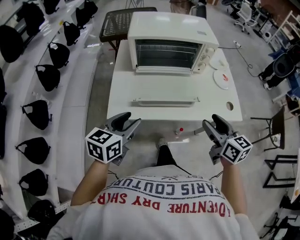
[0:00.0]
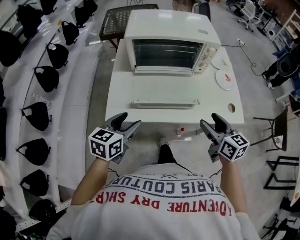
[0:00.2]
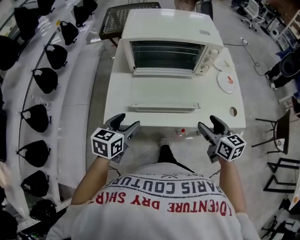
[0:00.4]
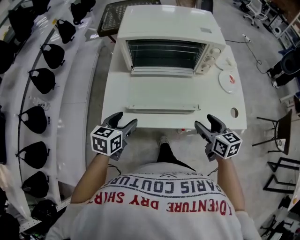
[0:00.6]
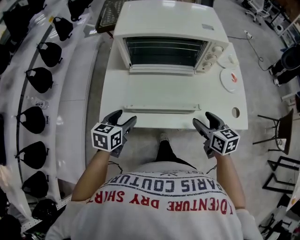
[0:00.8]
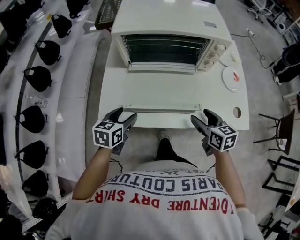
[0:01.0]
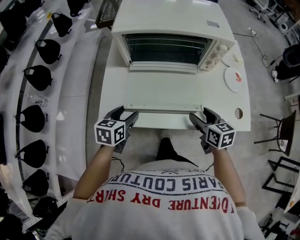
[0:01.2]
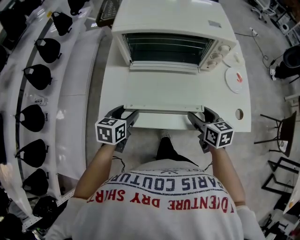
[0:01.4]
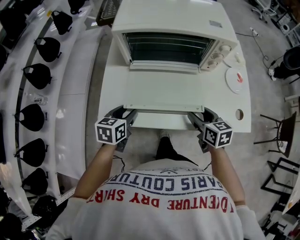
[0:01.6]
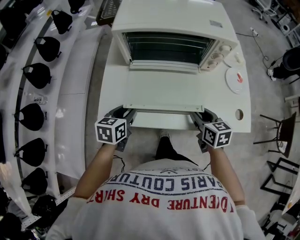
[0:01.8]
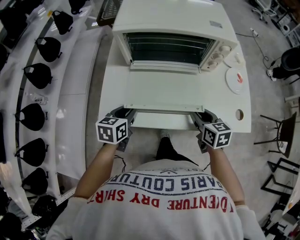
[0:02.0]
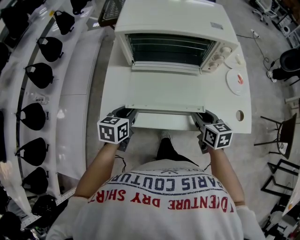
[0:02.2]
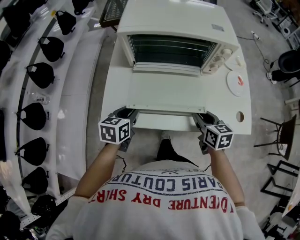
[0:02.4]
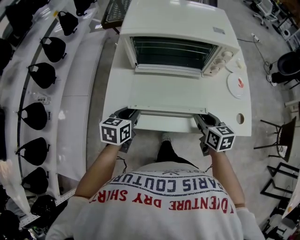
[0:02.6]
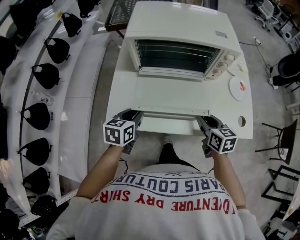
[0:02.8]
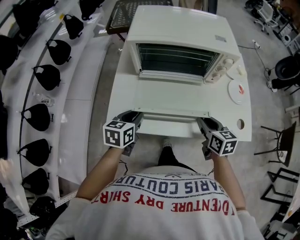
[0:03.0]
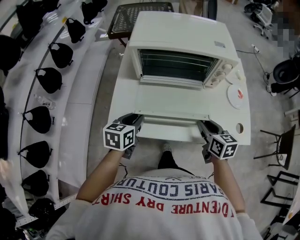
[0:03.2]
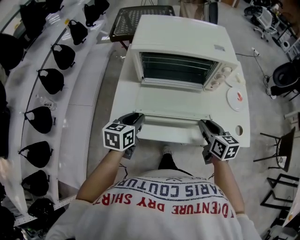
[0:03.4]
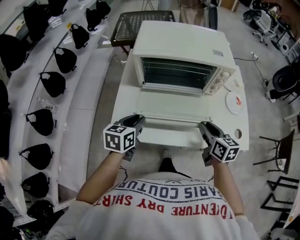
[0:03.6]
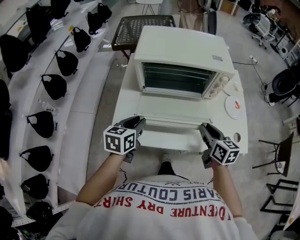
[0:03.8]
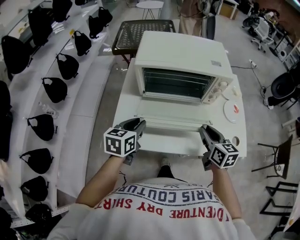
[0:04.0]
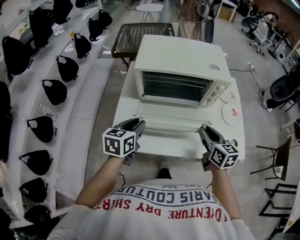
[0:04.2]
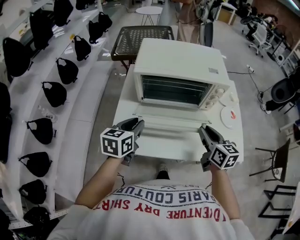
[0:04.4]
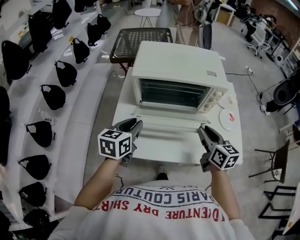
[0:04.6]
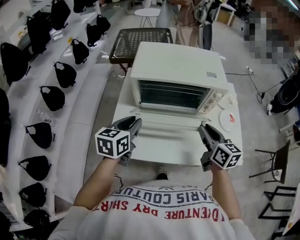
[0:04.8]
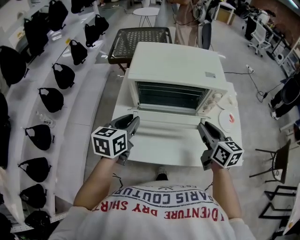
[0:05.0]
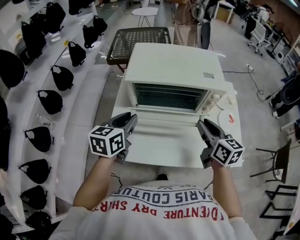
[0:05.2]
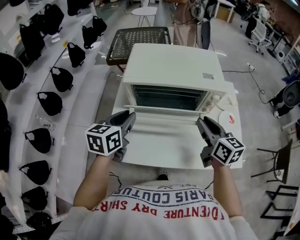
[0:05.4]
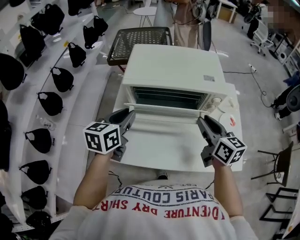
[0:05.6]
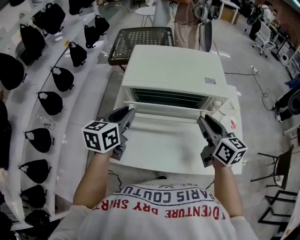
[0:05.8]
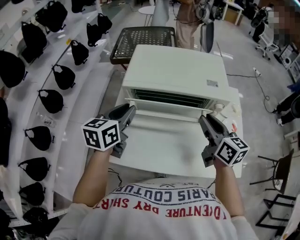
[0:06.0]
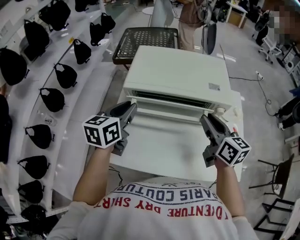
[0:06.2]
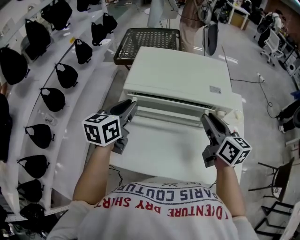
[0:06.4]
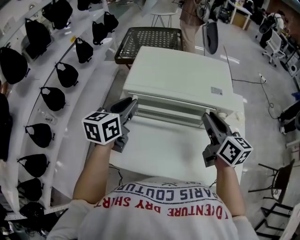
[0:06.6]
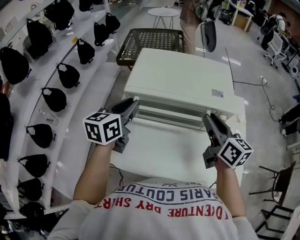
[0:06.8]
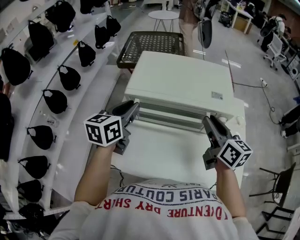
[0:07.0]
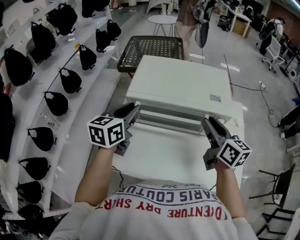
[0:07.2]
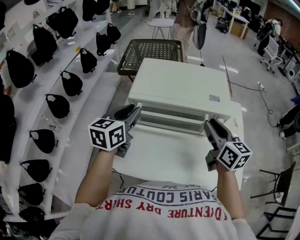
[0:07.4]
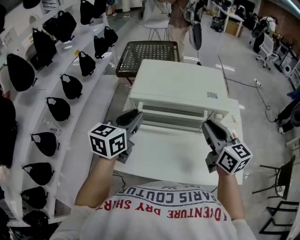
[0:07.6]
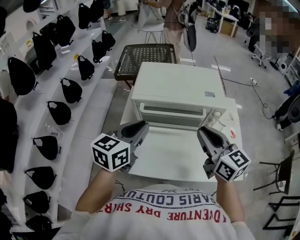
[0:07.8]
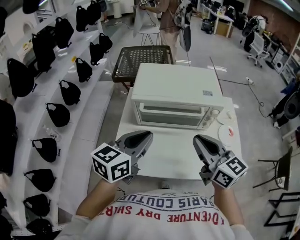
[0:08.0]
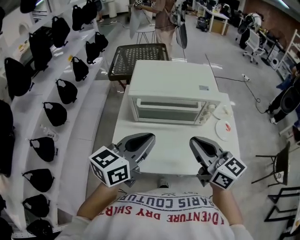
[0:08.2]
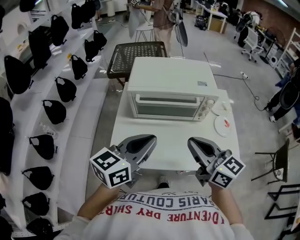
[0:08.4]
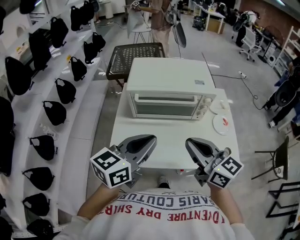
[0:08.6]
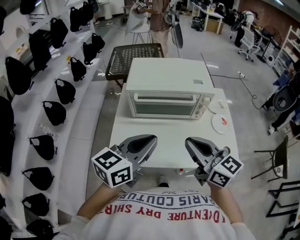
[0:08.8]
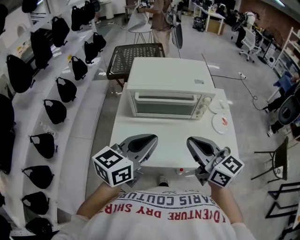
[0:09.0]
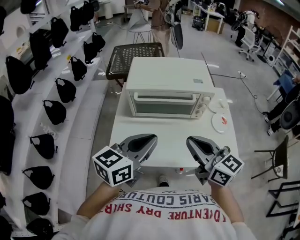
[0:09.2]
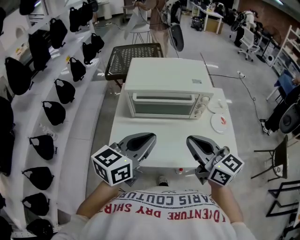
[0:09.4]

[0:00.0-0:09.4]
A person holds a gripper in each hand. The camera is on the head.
0.0 to 1.6 s: Both grippers travel together downward and forward, about 20 cm. The left gripper swivels some 20 degrees.
1.6 to 3.2 s: The right gripper closes its fingers. Meanwhile the left gripper closes its fingers.
3.2 to 4.8 s: Both grippers travel together upward and forward, approximately 10 cm.
4.8 to 6.2 s: The two grippers go roughly 10 cm forward and upward.
6.2 to 7.8 s: The right gripper goes roughly 10 cm backward, upward and to the left. The left gripper heads backward and upward, covering about 10 cm.
7.8 to 9.4 s: The right gripper travels backward by about 10 cm, while the left gripper shifts approximately 10 cm backward and to the right.

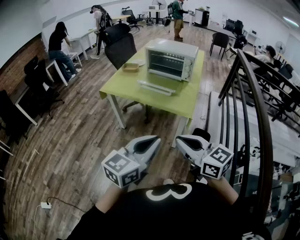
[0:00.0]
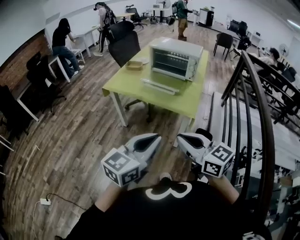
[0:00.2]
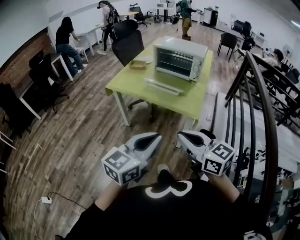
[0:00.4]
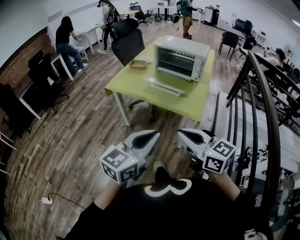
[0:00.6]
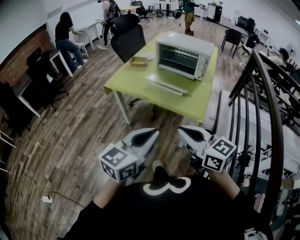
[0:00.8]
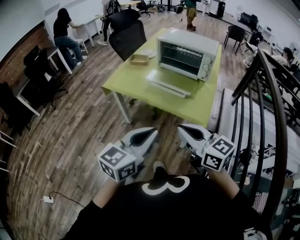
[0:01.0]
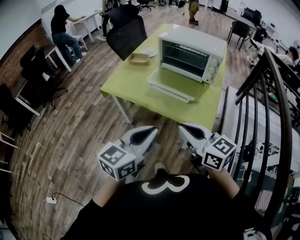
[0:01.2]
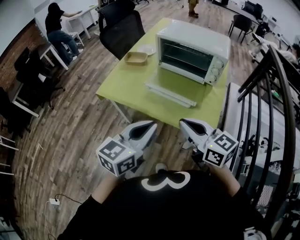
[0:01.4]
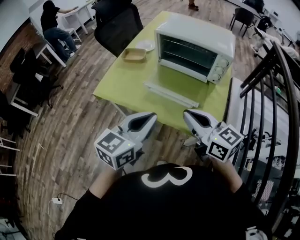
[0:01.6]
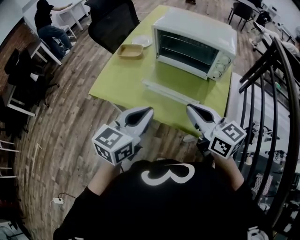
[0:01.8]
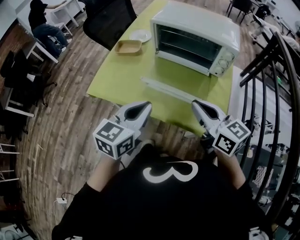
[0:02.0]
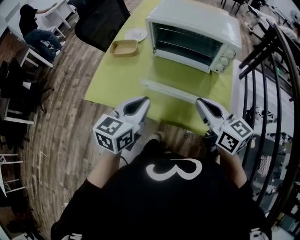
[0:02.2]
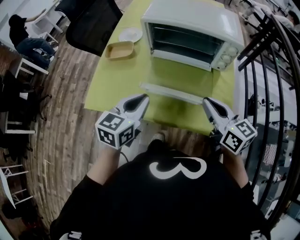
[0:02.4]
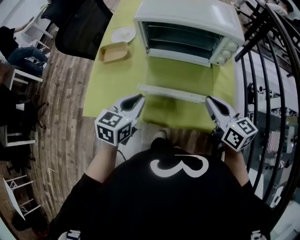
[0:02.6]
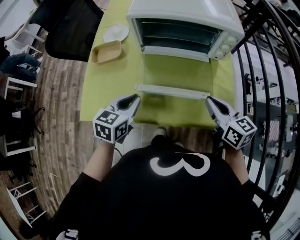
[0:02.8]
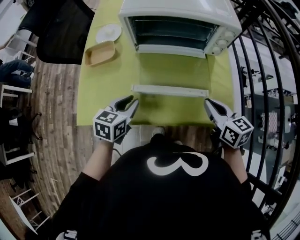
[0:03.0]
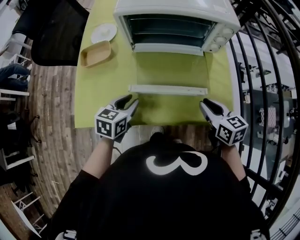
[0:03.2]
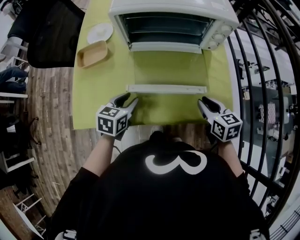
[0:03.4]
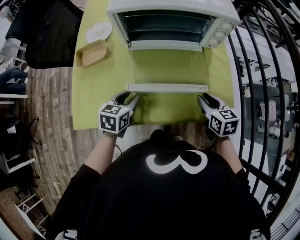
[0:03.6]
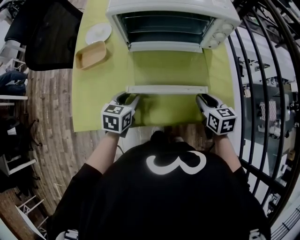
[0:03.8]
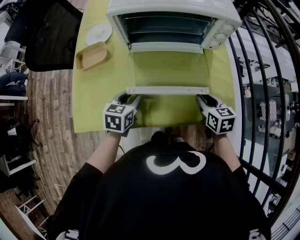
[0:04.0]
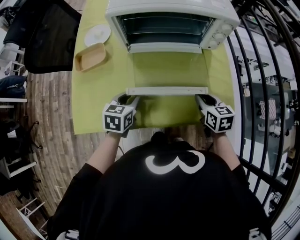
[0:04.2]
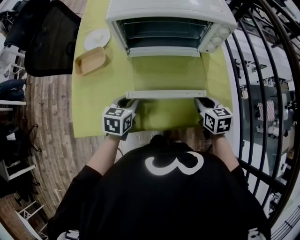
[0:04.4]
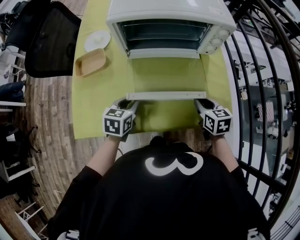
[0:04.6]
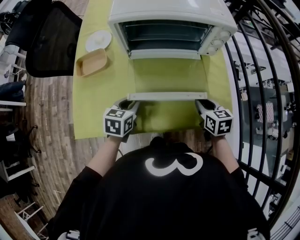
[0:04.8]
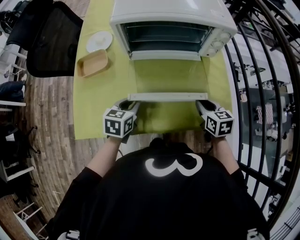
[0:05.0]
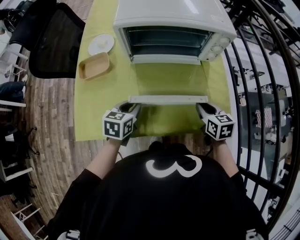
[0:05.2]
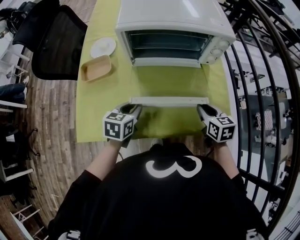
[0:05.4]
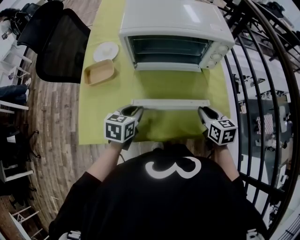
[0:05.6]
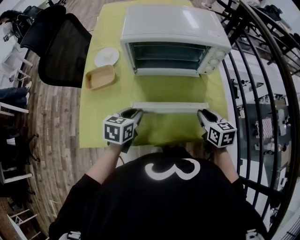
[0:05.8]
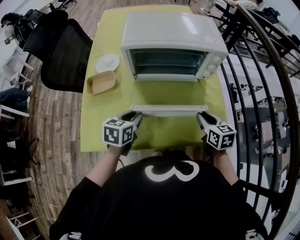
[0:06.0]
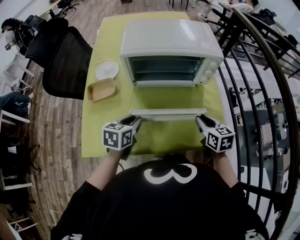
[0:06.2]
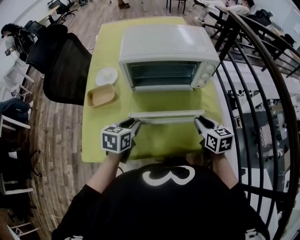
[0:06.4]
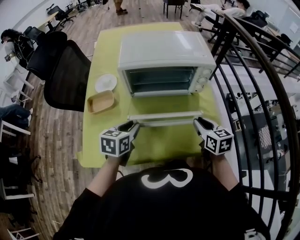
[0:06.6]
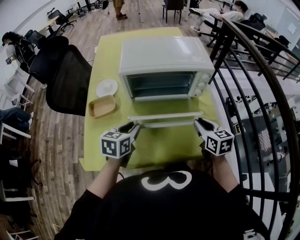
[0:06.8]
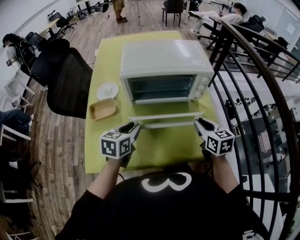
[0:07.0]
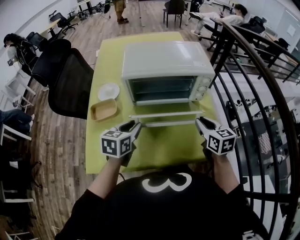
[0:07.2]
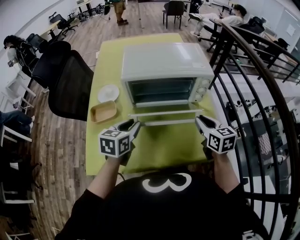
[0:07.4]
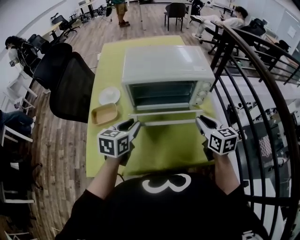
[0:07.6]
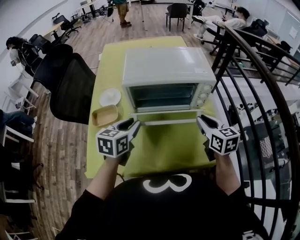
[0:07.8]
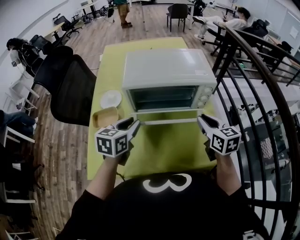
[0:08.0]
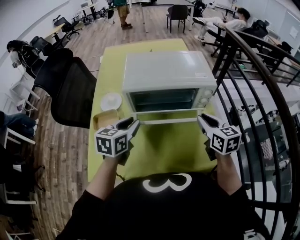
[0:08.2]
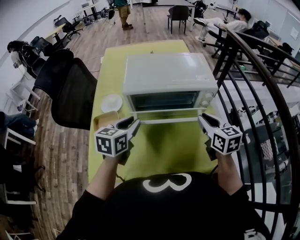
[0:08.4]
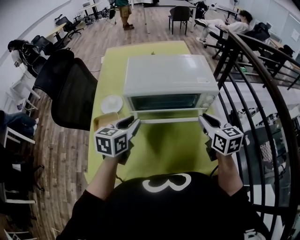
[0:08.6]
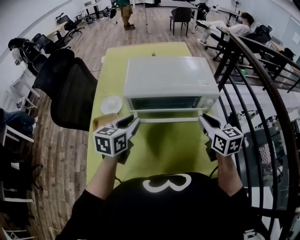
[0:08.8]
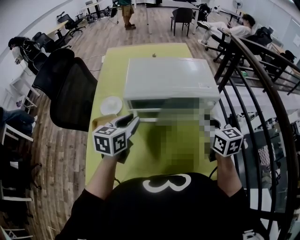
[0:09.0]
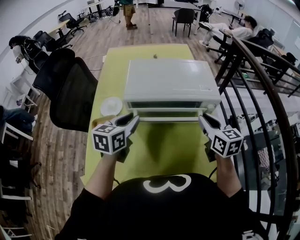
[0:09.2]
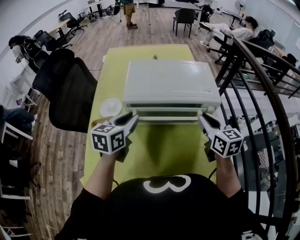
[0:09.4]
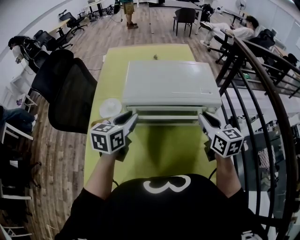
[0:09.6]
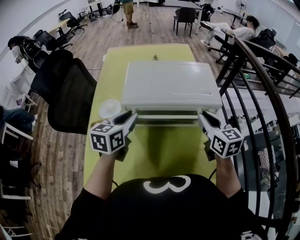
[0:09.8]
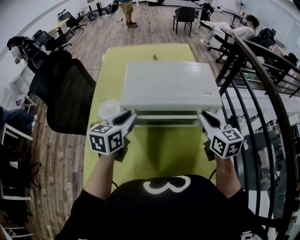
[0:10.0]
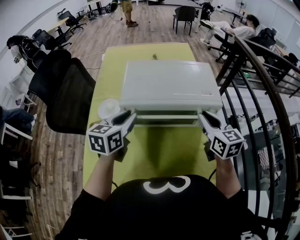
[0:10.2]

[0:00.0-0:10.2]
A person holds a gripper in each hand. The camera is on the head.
0.0 to 1.4 s: Both grippers travel together forward, about 35 cm.
1.4 to 3.0 s: The left gripper shifts by approximately 40 cm, and rotates some 30 degrees. The right gripper shifts by about 25 cm, and changes its angle by some 40 degrees.
3.0 to 4.4 s: The left gripper goes some 5 cm downward, while the right gripper moves downward, roughly 10 cm.
4.4 to 5.8 s: Both grippers move upward, about 5 cm.
5.8 to 7.2 s: Both grippers travel together upward, roughly 10 cm.
7.2 to 8.8 s: The grippers both shift forward and upward by approximately 10 cm.
8.8 to 10.2 s: Both grippers move forward, approximately 5 cm.

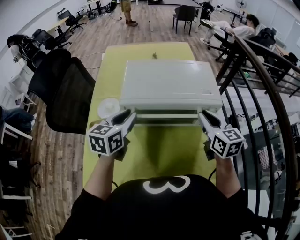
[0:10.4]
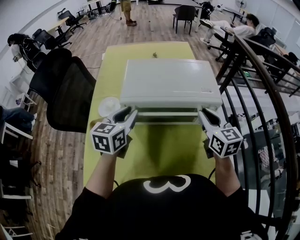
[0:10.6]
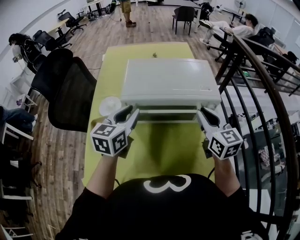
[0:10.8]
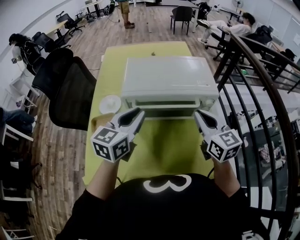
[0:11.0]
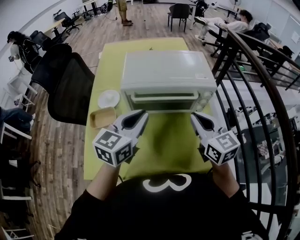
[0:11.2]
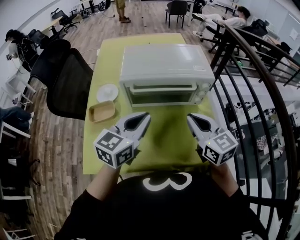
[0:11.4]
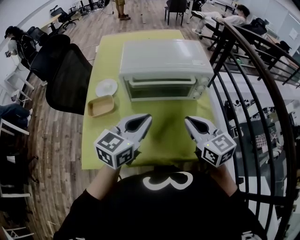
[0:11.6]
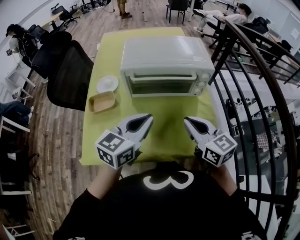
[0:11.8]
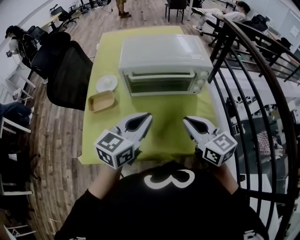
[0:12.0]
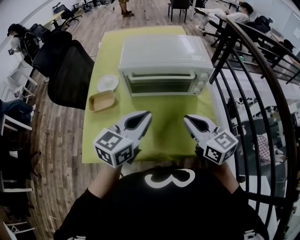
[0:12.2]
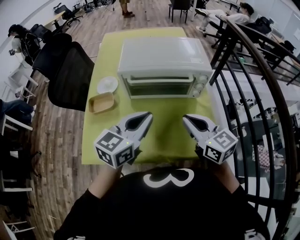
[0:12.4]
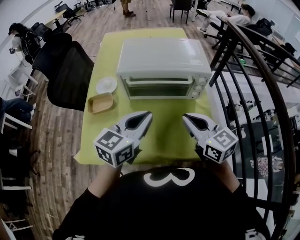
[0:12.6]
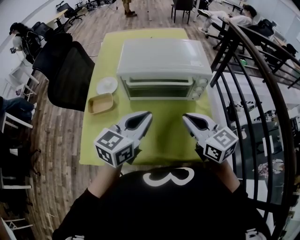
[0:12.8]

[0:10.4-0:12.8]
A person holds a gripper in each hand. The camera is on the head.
10.4 to 11.6 s: The right gripper moves backward, about 15 cm; the left gripper travels backward and to the right by roughly 20 cm, and closes its fingers.
11.6 to 12.8 s: The grippers move only a little.

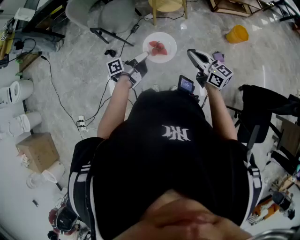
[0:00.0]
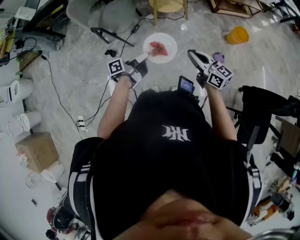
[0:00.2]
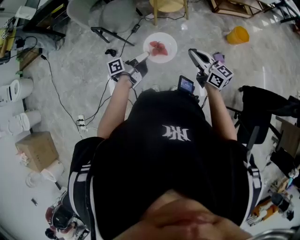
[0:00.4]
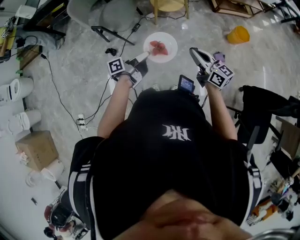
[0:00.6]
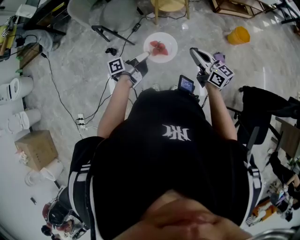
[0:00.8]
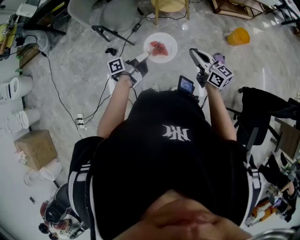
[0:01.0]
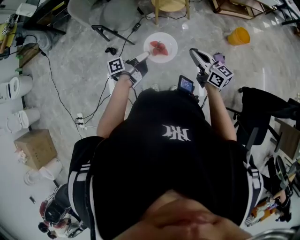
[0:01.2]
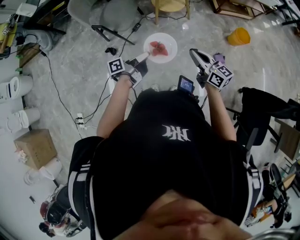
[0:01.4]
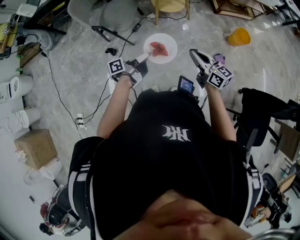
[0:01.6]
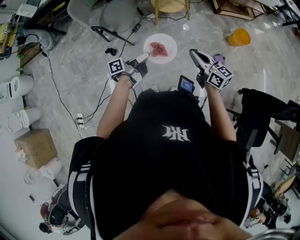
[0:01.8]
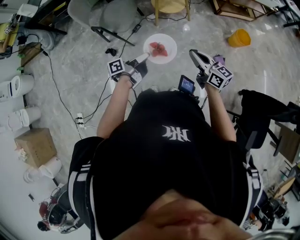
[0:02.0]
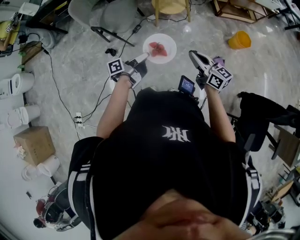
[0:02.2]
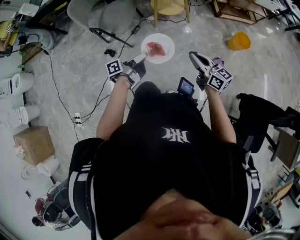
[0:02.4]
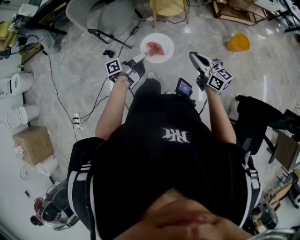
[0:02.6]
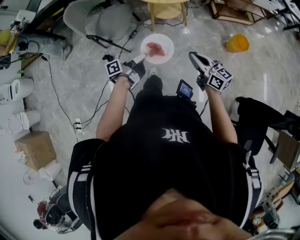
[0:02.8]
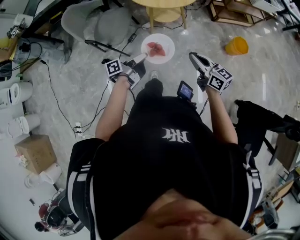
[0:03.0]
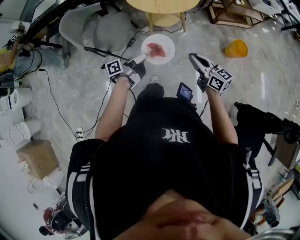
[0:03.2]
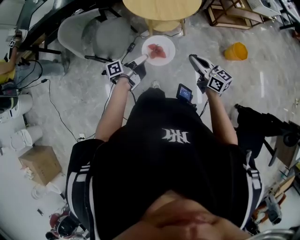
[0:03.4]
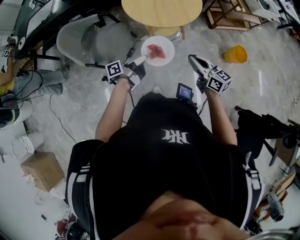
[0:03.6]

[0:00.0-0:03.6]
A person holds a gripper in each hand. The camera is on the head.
1.8 to 3.6 s: The right gripper moves approximately 25 cm.
